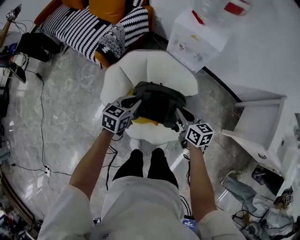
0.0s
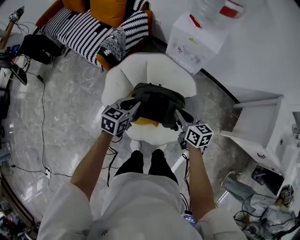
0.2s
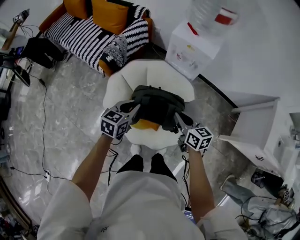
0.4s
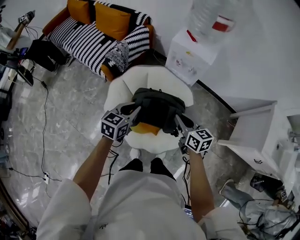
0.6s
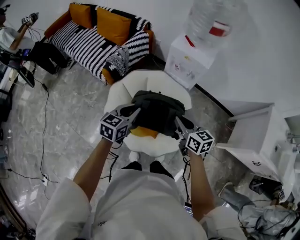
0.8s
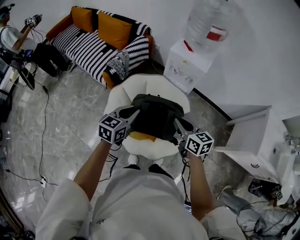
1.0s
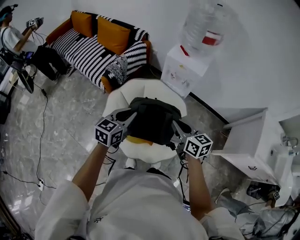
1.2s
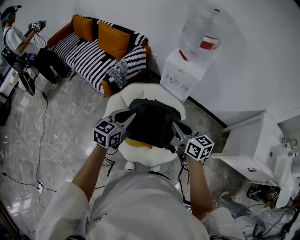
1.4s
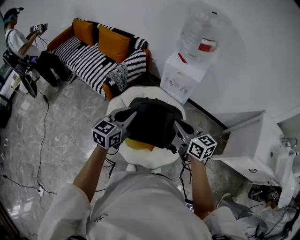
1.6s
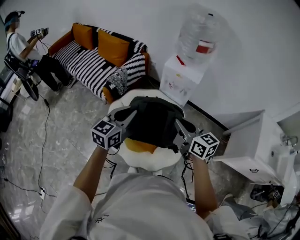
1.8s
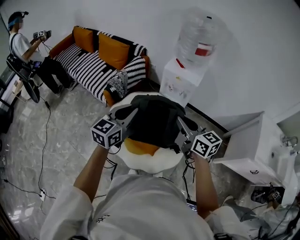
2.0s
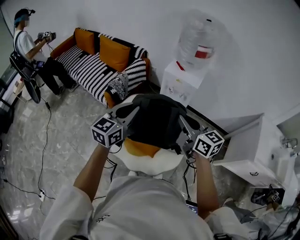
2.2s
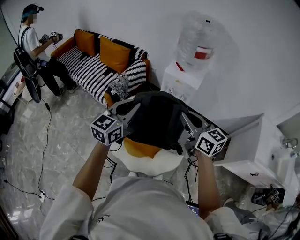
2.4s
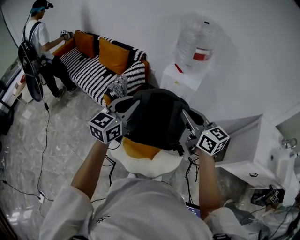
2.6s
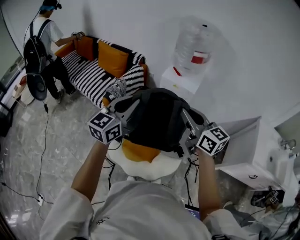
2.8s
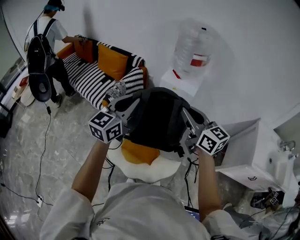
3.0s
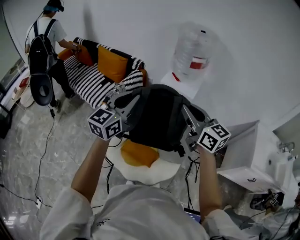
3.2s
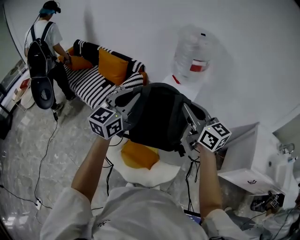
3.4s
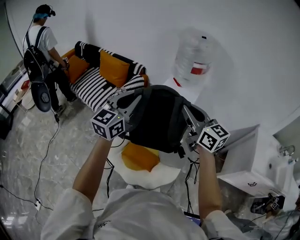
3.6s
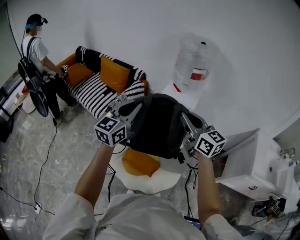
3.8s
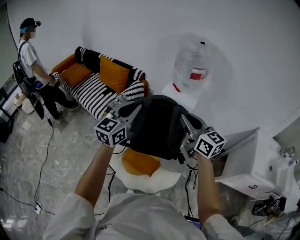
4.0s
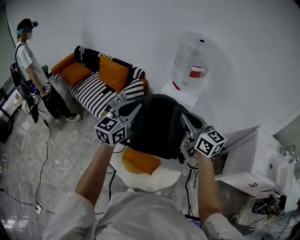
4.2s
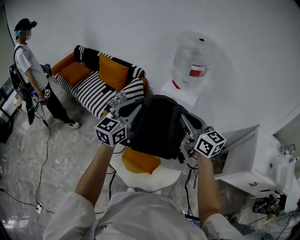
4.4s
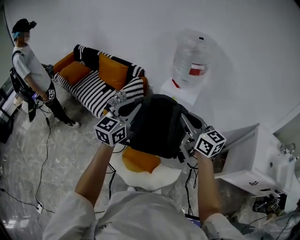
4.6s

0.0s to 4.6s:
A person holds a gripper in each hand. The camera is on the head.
0.0s to 1.6s: Both grippers move upward, about 20 cm. The left gripper changes its angle by roughly 20 degrees.
1.6s to 3.0s: Both grippers travel together upward, about 15 cm.
3.0s to 4.6s: There are only small adjustments of the grippers.

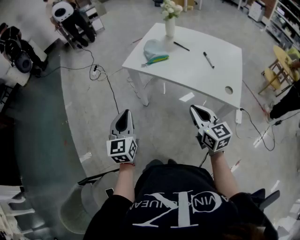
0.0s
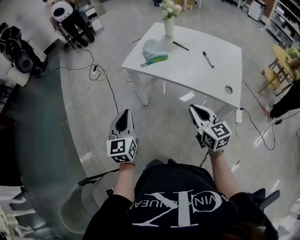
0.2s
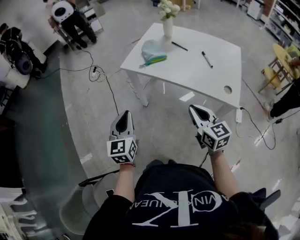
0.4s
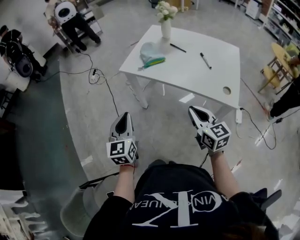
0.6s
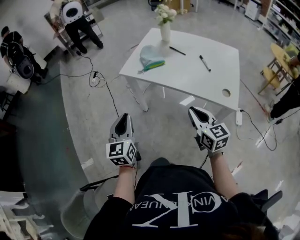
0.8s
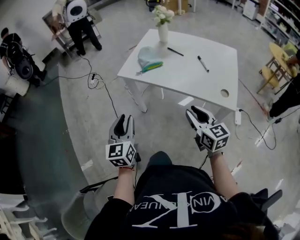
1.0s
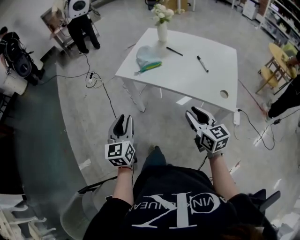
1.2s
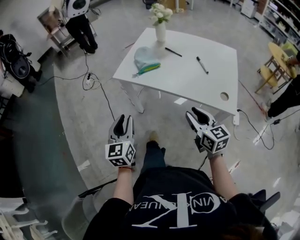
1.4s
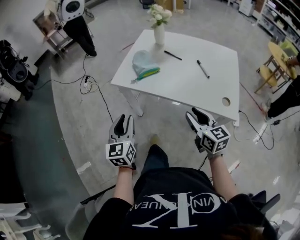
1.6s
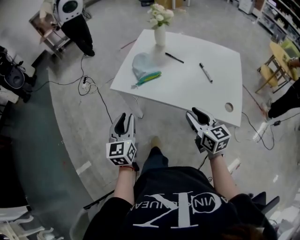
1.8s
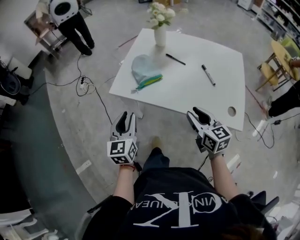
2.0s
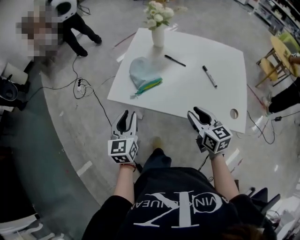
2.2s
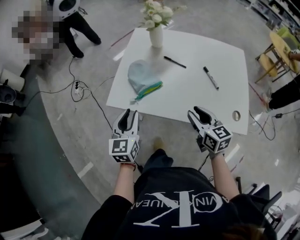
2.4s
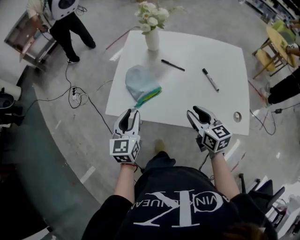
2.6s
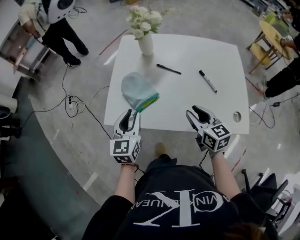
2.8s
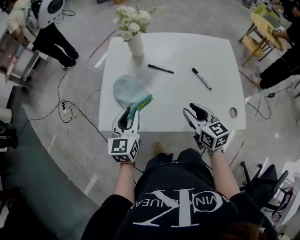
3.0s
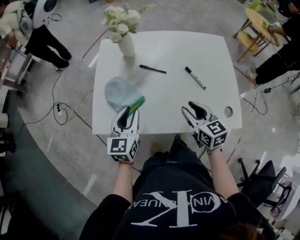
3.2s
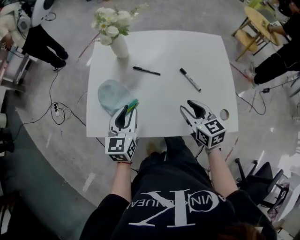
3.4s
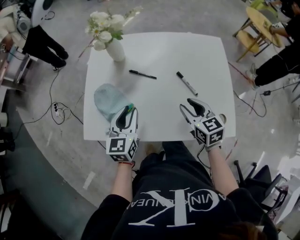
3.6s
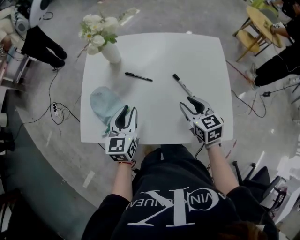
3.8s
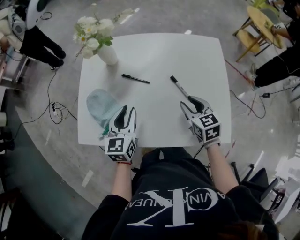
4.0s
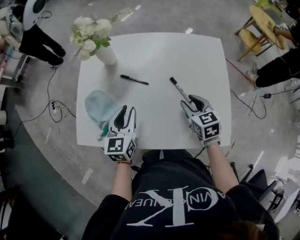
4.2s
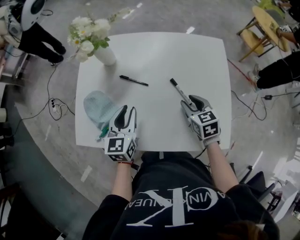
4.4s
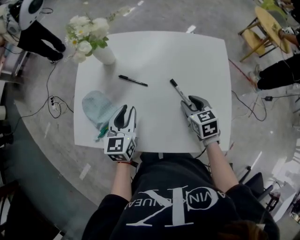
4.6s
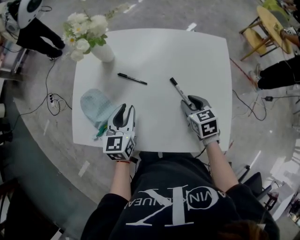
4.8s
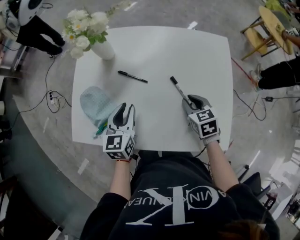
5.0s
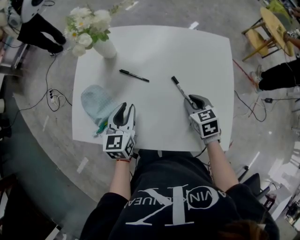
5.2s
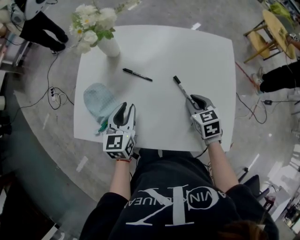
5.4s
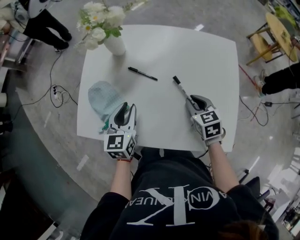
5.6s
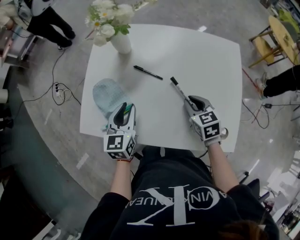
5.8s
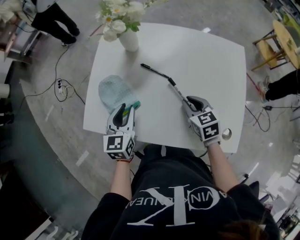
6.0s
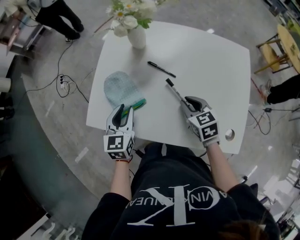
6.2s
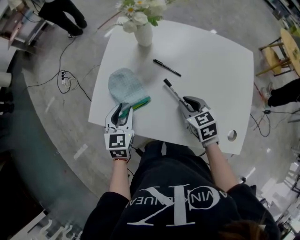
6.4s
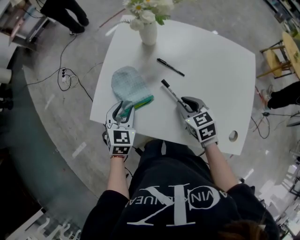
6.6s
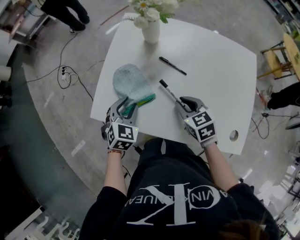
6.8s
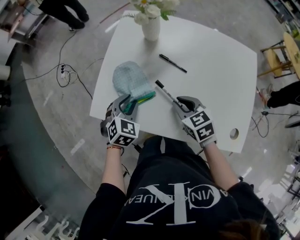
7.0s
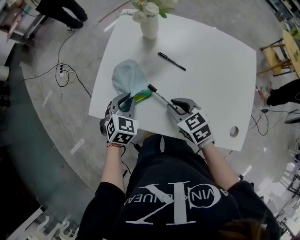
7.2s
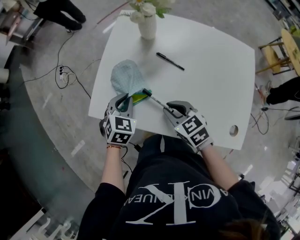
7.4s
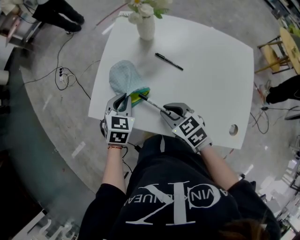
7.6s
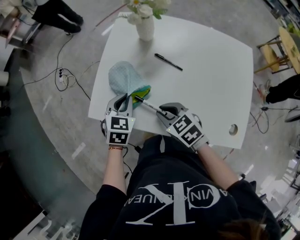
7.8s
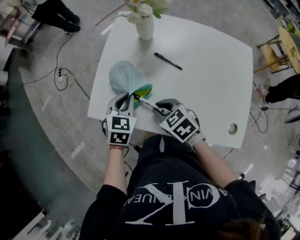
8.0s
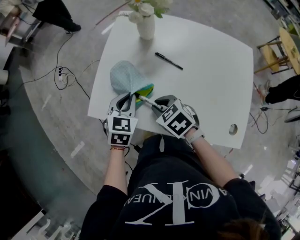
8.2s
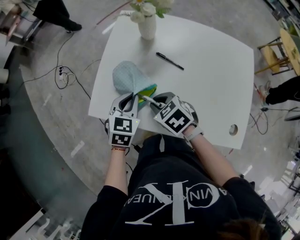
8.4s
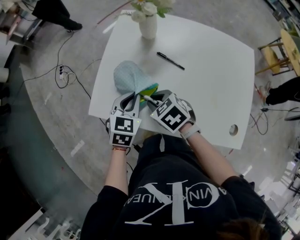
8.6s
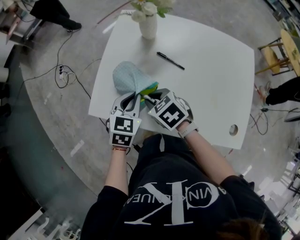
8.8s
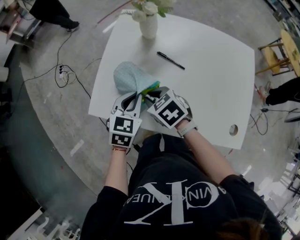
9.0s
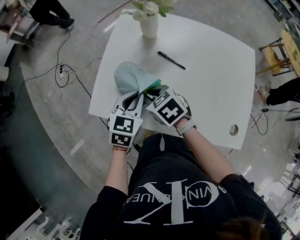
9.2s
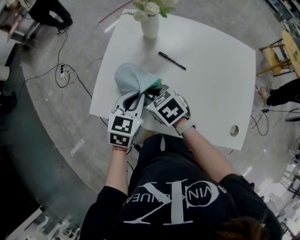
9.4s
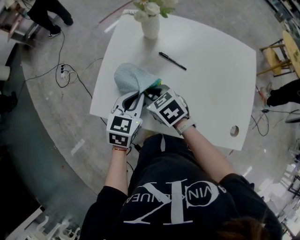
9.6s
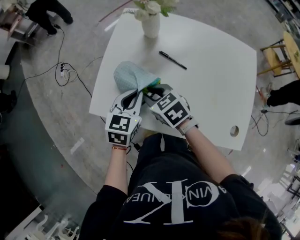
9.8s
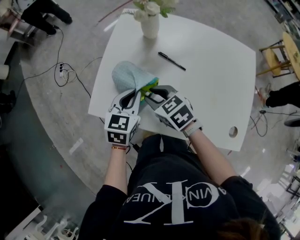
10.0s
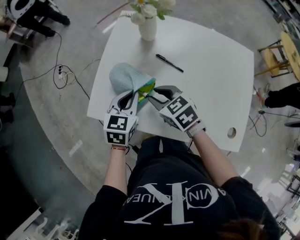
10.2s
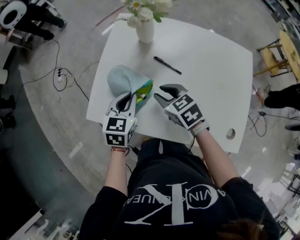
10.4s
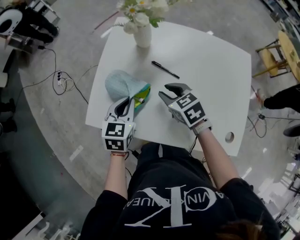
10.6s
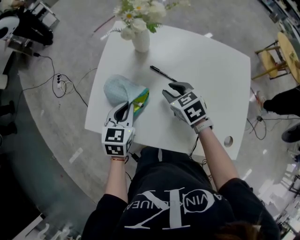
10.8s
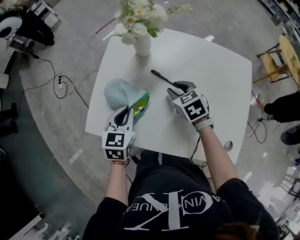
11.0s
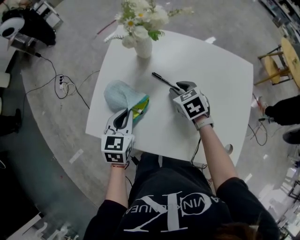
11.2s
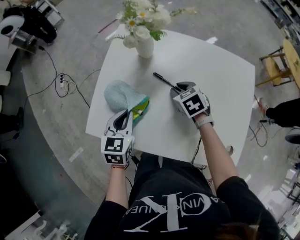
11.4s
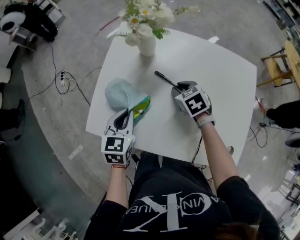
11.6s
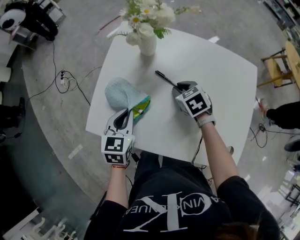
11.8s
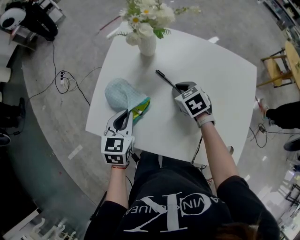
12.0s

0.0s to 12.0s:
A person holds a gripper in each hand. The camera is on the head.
0.0s to 1.6s: The left gripper moves forward, about 10 cm, and opens its fingers; the right gripper heads forward and to the right, covering some 10 cm, and opens its fingers.
1.6s to 3.0s: Both grippers travel together forward, roughly 25 cm. The left gripper swivels approximately 20 degrees.
3.0s to 4.4s: The left gripper travels to the right and forward by about 15 cm; the right gripper shifts some 20 cm to the right, forward and downward, and swivels about 20 degrees.
4.4s to 6.0s: The two grippers go about 10 cm to the left. The right gripper closes its fingers.
6.0s to 7.6s: The right gripper heads to the left, covering about 15 cm, and swivels some 20 degrees. Meanwhile the left gripper moves to the left, some 5 cm, and turns by roughly 30 degrees.
7.6s to 9.0s: The left gripper ends up about 5 cm from where it was. Meanwhile the right gripper is displaced forward by approximately 5 cm.
9.0s to 10.4s: The right gripper goes roughly 5 cm to the right.
10.4s to 12.0s: The right gripper is displaced to the right, forward and downward by some 15 cm.

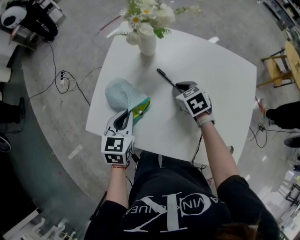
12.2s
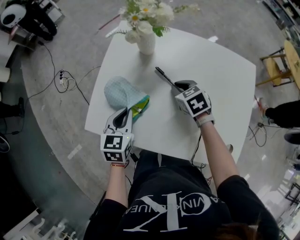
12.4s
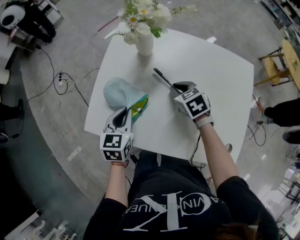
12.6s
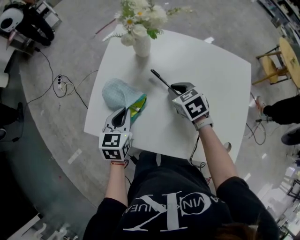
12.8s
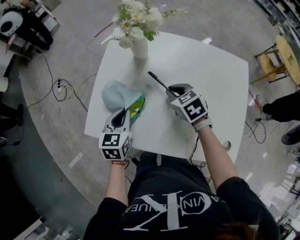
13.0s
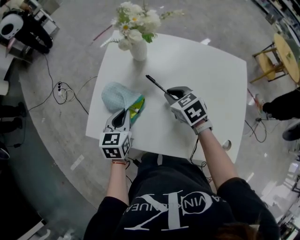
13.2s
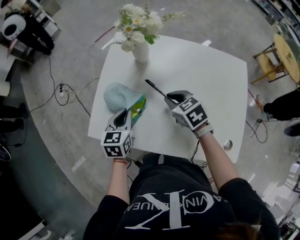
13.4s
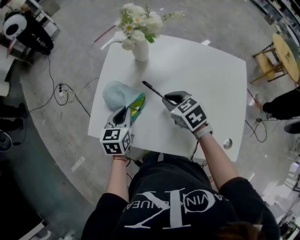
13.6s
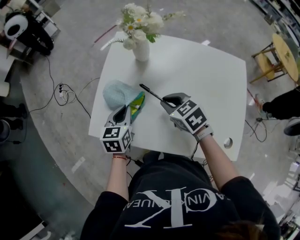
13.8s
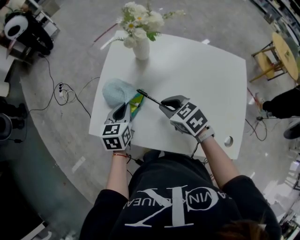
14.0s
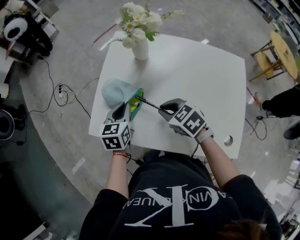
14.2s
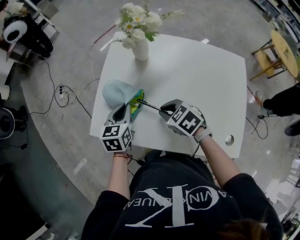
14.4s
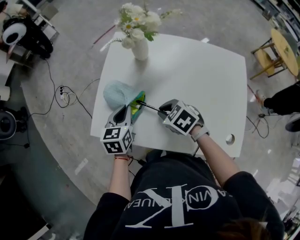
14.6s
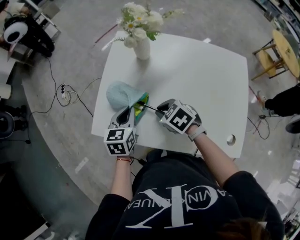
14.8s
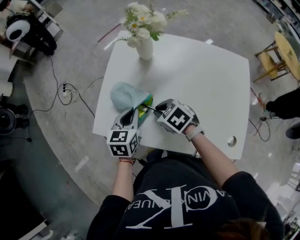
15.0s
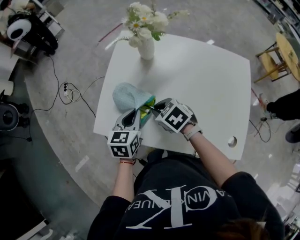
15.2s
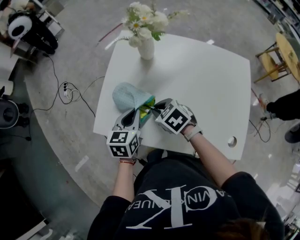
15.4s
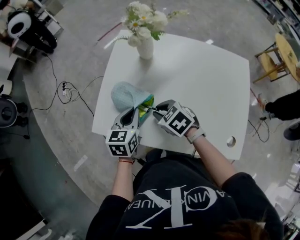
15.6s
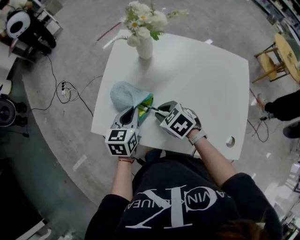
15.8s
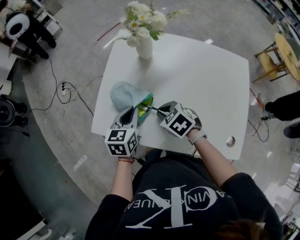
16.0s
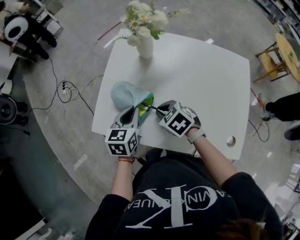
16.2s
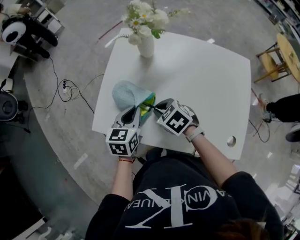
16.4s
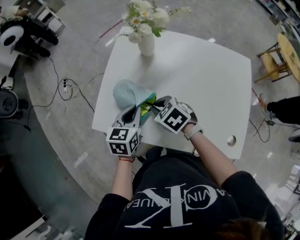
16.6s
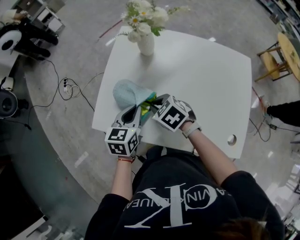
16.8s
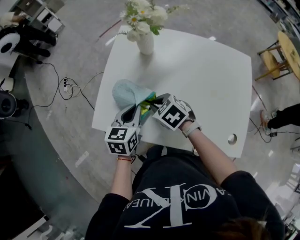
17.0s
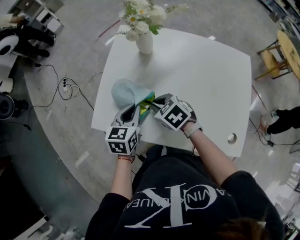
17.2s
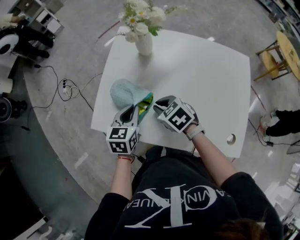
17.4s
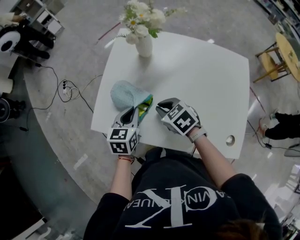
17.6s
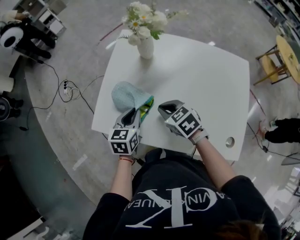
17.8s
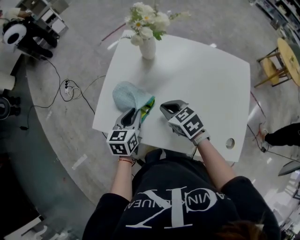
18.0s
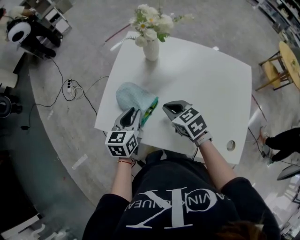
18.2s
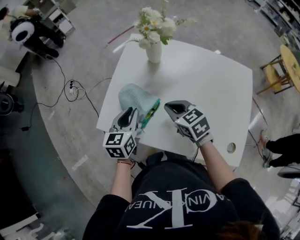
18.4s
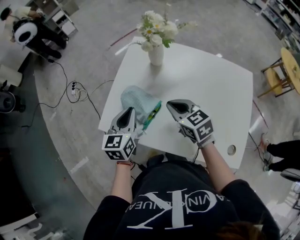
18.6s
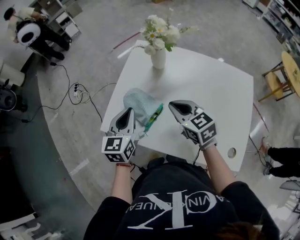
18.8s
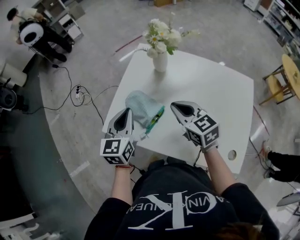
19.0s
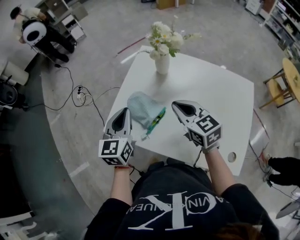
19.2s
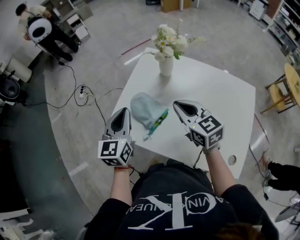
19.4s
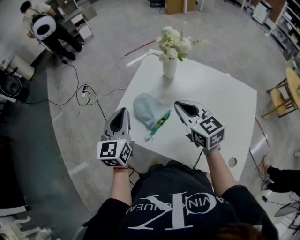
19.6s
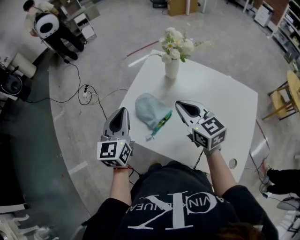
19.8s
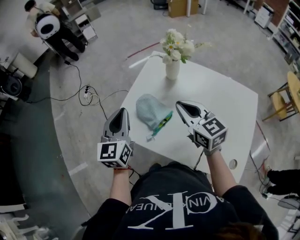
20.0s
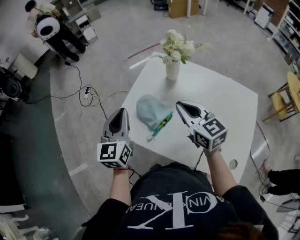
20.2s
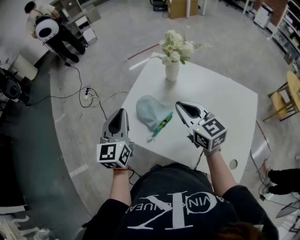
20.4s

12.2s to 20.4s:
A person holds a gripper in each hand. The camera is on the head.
12.2s to 13.8s: The right gripper travels upward, to the left and backward by roughly 10 cm.
13.8s to 15.4s: The right gripper goes some 5 cm to the left.
15.4s to 17.2s: The grippers stay close to where they were, moving slightly.
17.2s to 18.8s: The two grippers go some 10 cm upward. The right gripper swivels some 30 degrees.
18.8s to 20.4s: The right gripper shifts approximately 10 cm upward; the left gripper moves upward and to the left, about 10 cm.
